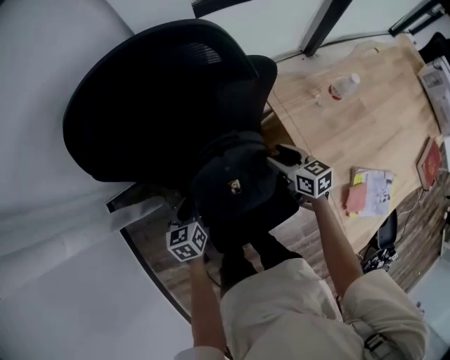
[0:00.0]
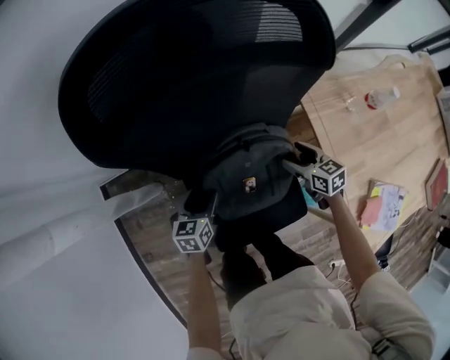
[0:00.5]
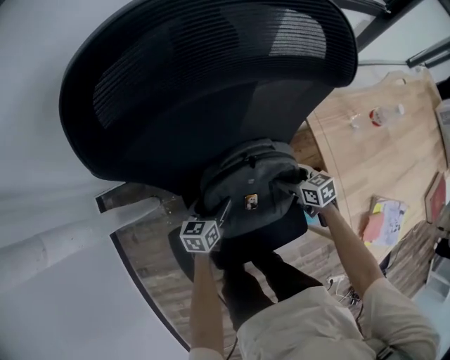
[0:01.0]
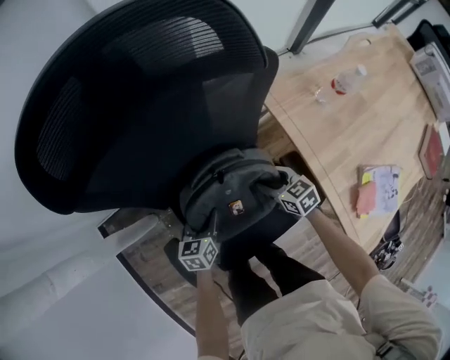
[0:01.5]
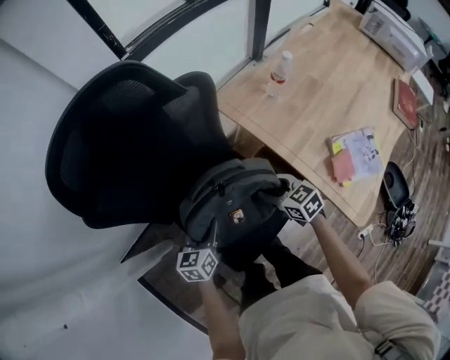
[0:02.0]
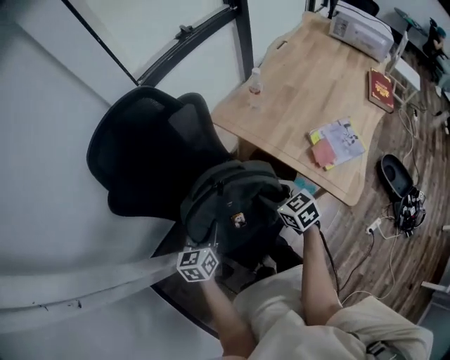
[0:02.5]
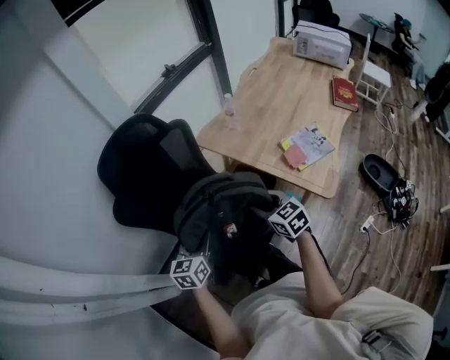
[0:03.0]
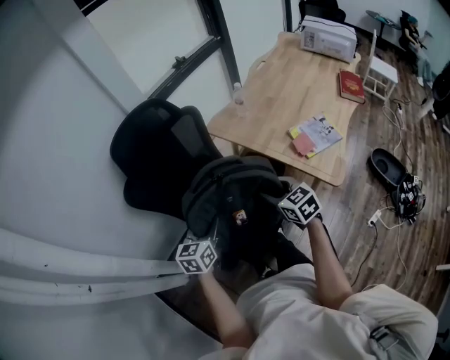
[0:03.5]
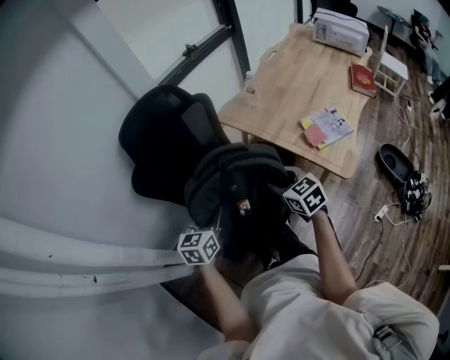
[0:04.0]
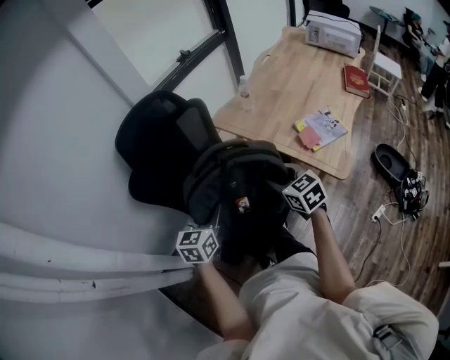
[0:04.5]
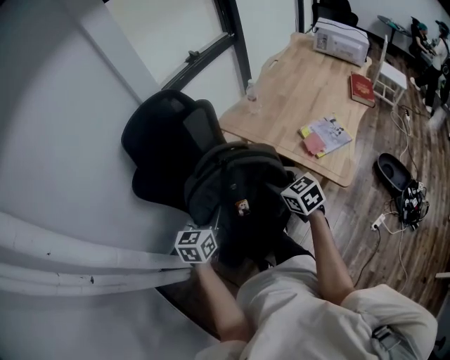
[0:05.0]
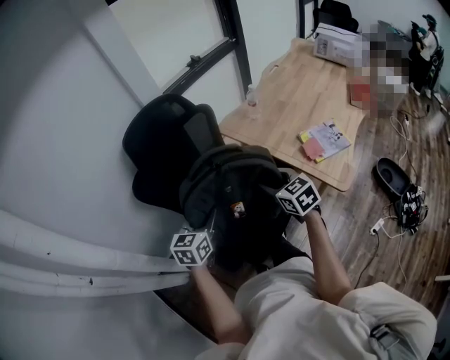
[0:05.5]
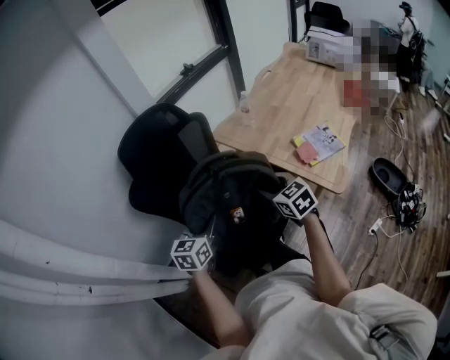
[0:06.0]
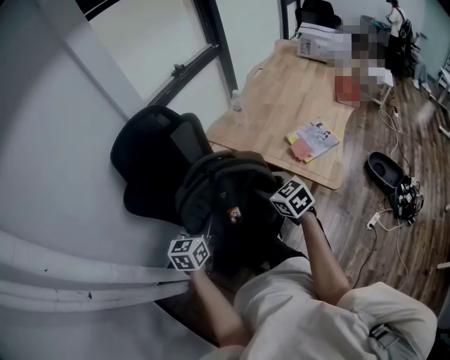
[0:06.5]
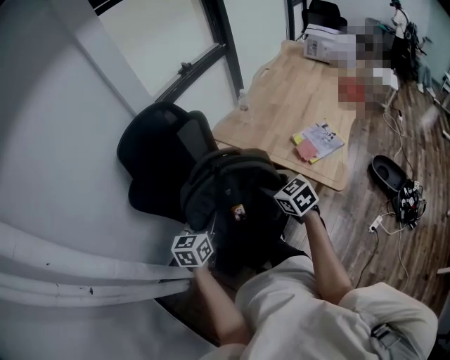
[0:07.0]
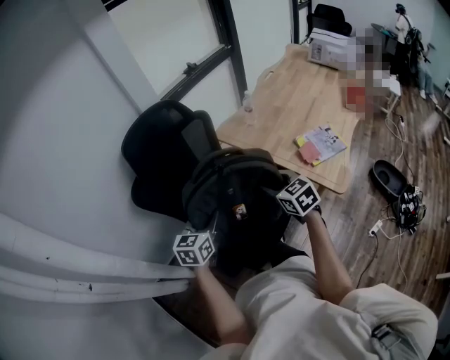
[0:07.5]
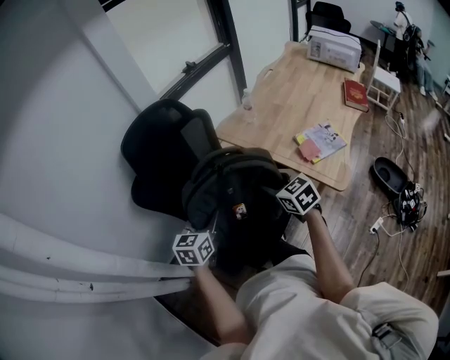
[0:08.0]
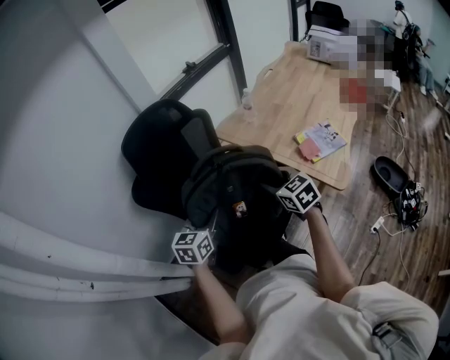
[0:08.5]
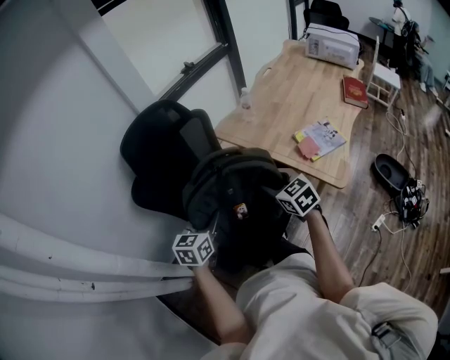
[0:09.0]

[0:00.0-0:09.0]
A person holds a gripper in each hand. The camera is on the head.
0:00.0 to 0:02.0: The right gripper travels backward by about 10 cm, and travels downward and back again, approximately 15 cm each way; the left gripper moves to the right and backward, some 10 cm, moves approximately 15 cm downward and comes back, swivels roughly 30 degrees, and opens up.
0:02.0 to 0:04.5: The two grippers go about 30 cm upward and backward. The left gripper turns by about 20 degrees. Meanwhile the right gripper turns by approximately 20 degrees.
0:04.5 to 0:07.0: The grippers make only small movements.
0:07.0 to 0:09.0: The two grippers keep their place.

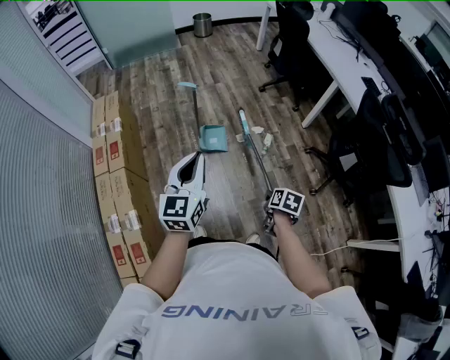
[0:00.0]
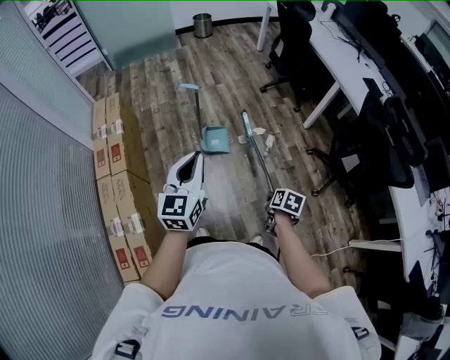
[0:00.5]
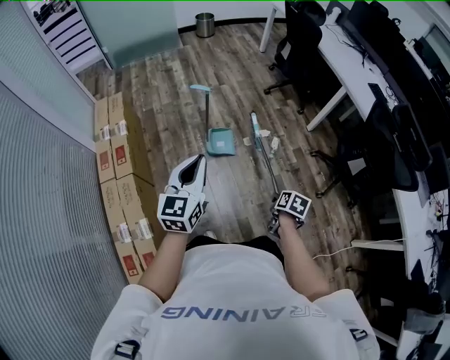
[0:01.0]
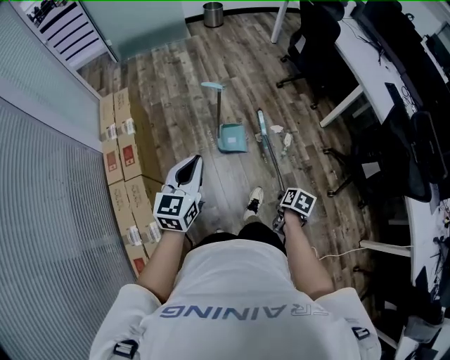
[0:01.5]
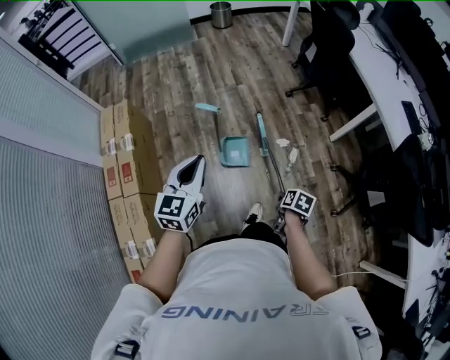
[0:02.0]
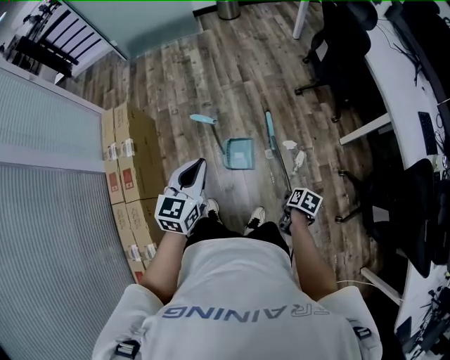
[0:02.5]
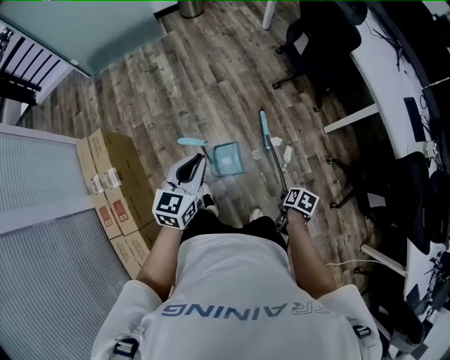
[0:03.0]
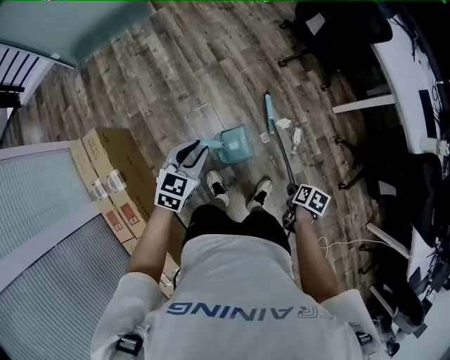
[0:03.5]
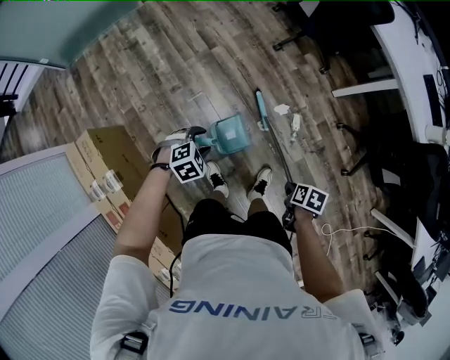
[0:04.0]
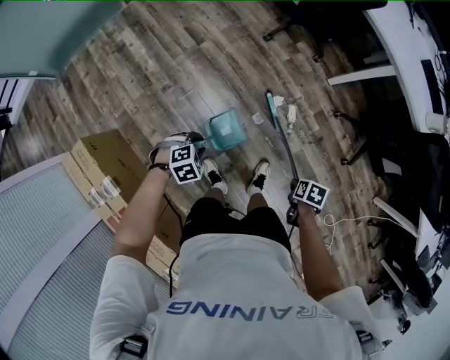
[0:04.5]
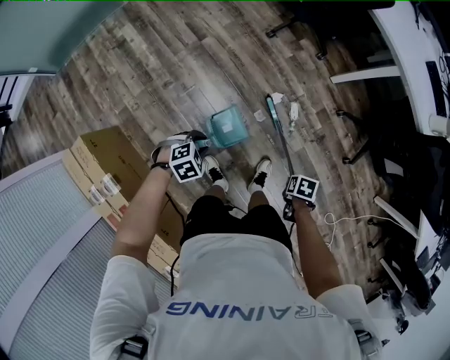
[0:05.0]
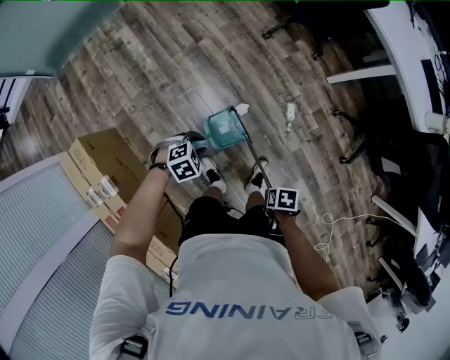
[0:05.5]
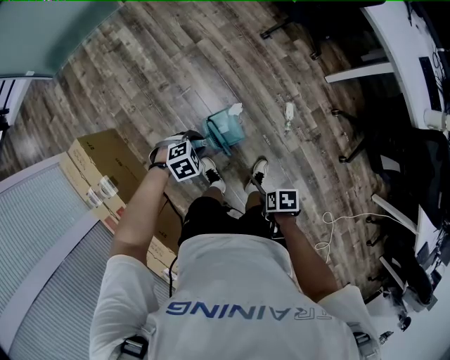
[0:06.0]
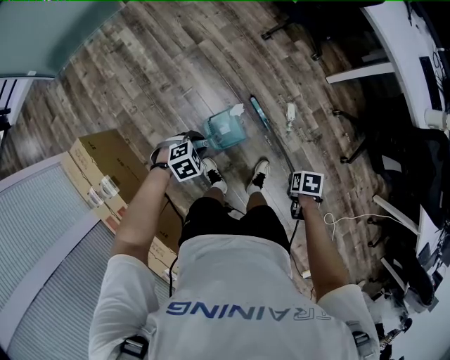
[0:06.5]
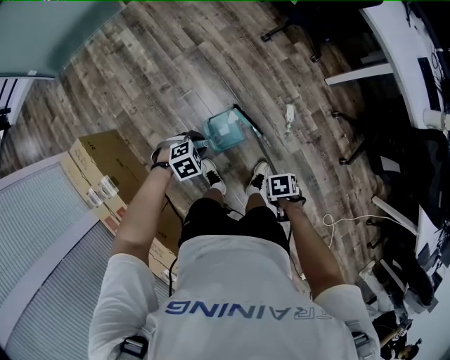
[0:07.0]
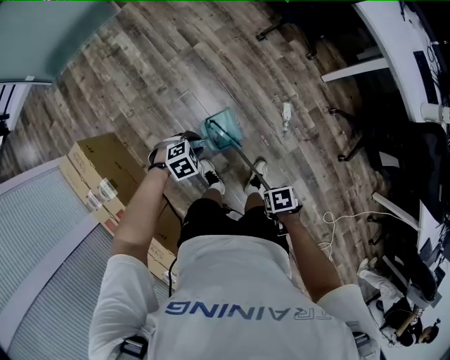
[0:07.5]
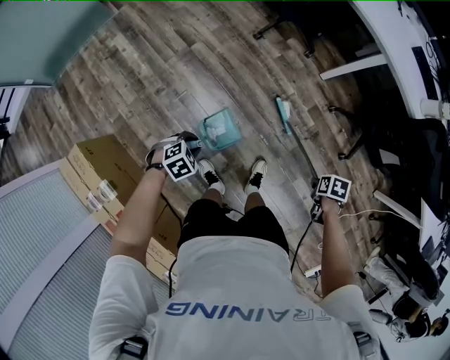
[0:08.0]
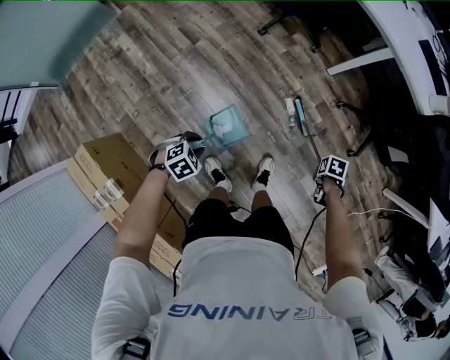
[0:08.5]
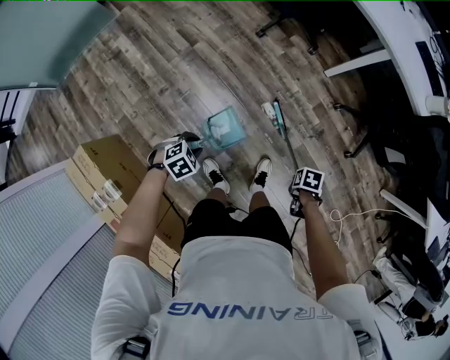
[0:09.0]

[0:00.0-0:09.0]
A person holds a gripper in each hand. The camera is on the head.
0:00.0 to 0:02.0: The left gripper changes place by about 25 cm.
0:02.0 to 0:04.5: The left gripper shifts roughly 35 cm downward, tilts its fingers roughly 60 degrees downward, and opens.

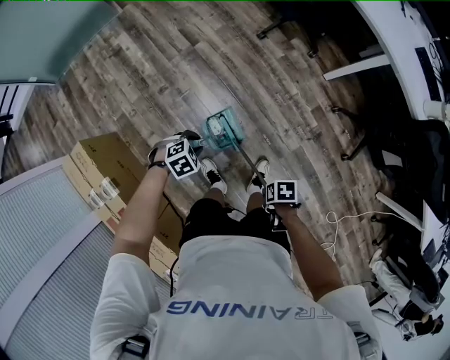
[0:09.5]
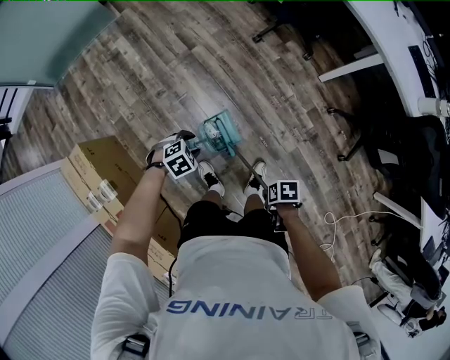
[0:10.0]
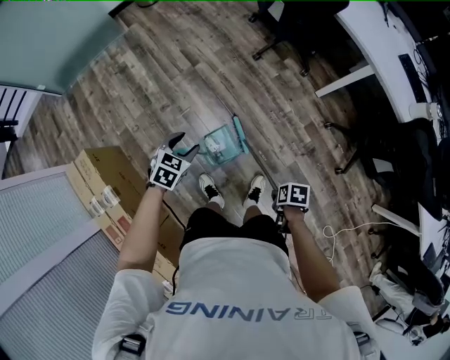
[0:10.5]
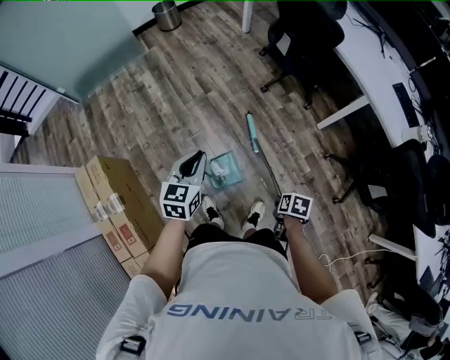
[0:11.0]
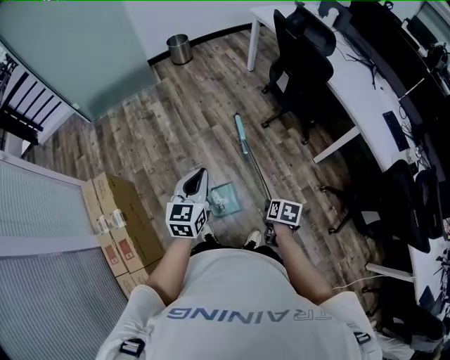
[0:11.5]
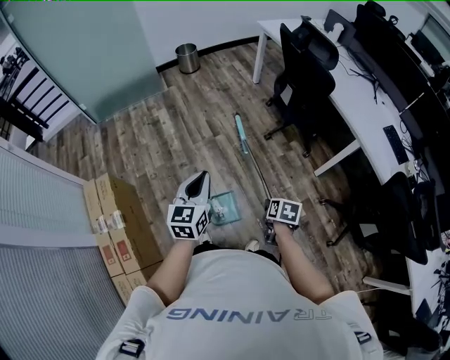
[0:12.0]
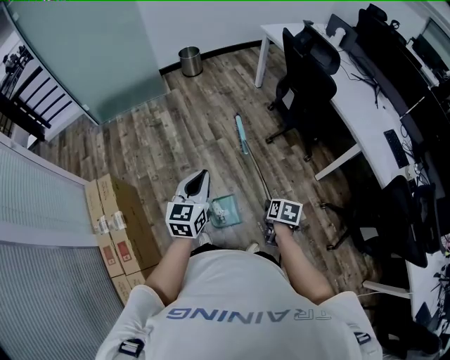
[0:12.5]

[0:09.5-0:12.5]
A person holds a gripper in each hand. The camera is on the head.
0:09.5 to 0:11.0: The left gripper is displaced upward by approximately 25 cm, angles its fingers upward, by some 40 degrees, and opens, then closes again.
0:11.0 to 0:12.5: The left gripper shifts approximately 10 cm upward.

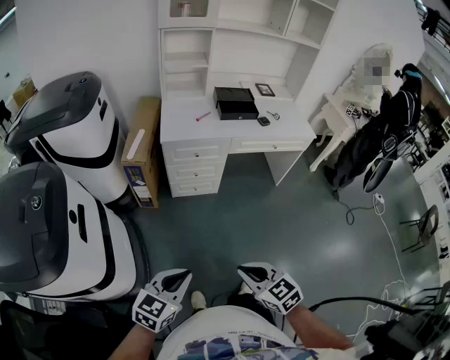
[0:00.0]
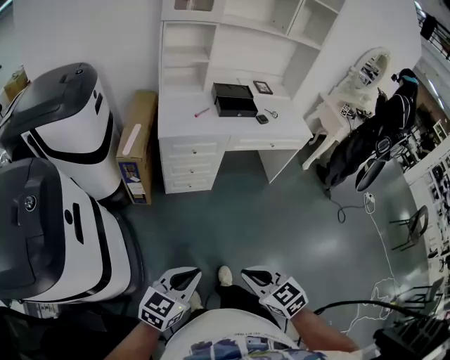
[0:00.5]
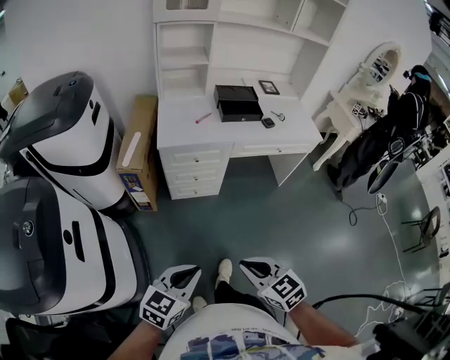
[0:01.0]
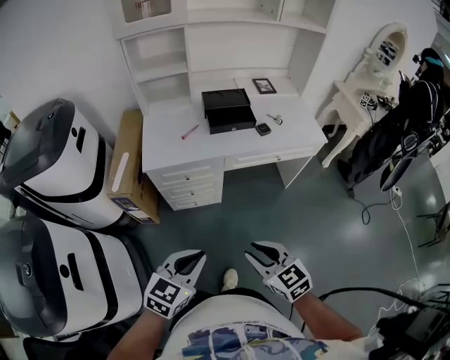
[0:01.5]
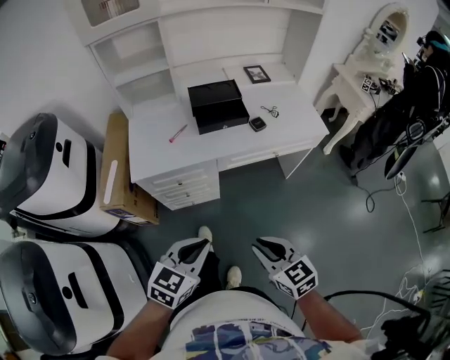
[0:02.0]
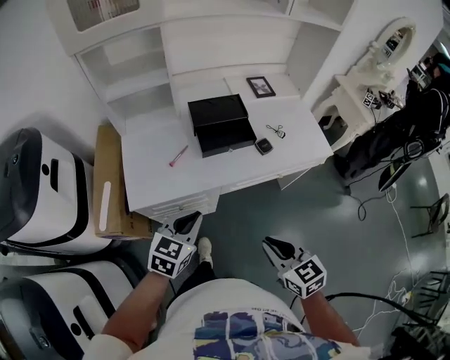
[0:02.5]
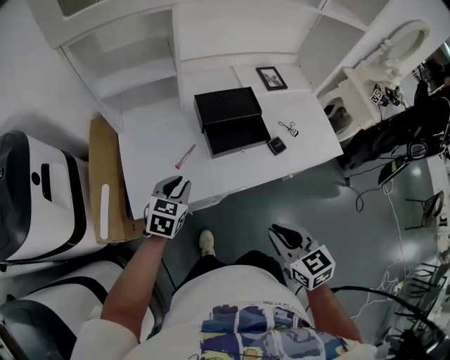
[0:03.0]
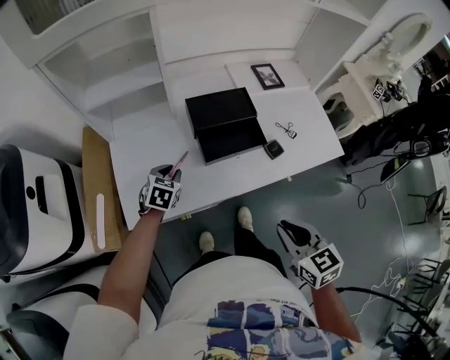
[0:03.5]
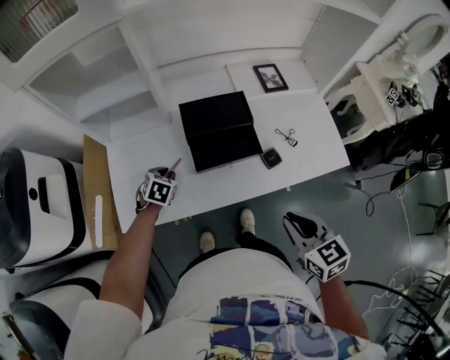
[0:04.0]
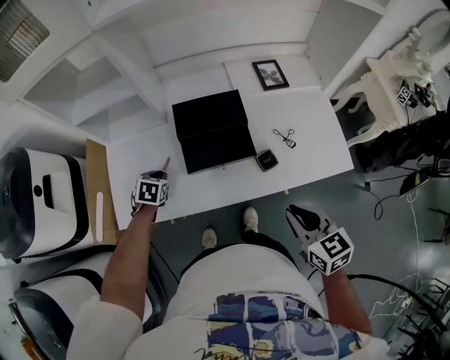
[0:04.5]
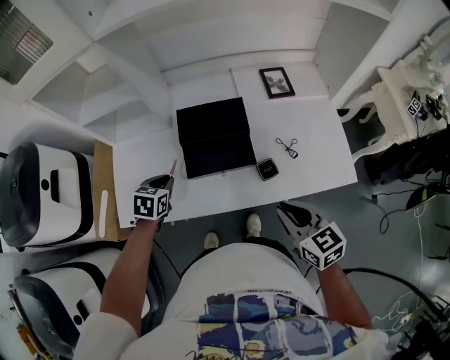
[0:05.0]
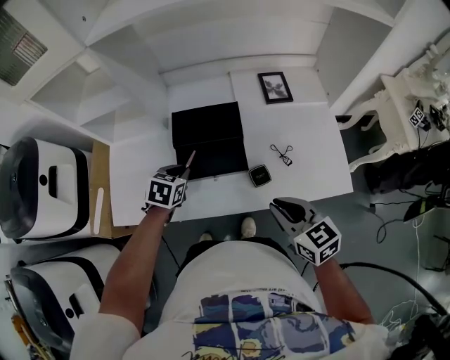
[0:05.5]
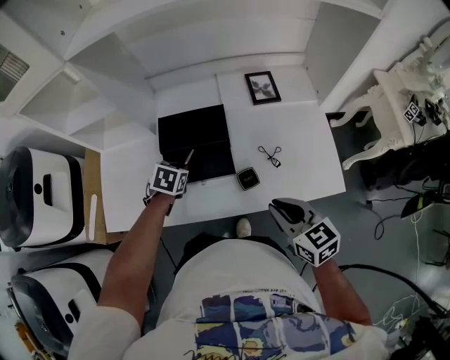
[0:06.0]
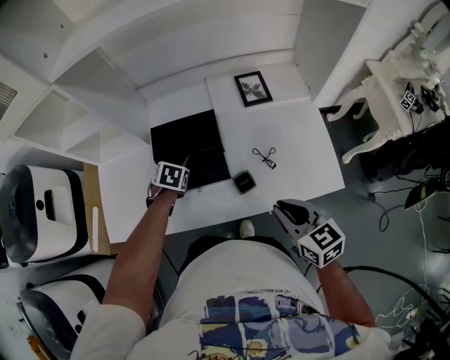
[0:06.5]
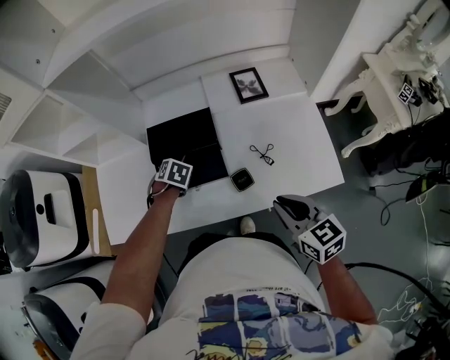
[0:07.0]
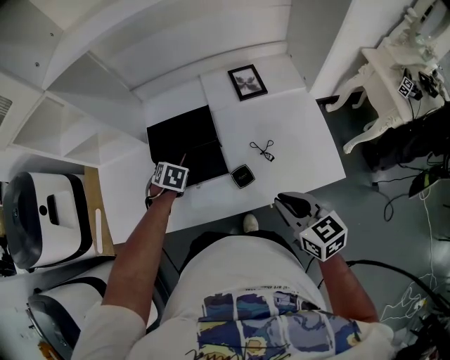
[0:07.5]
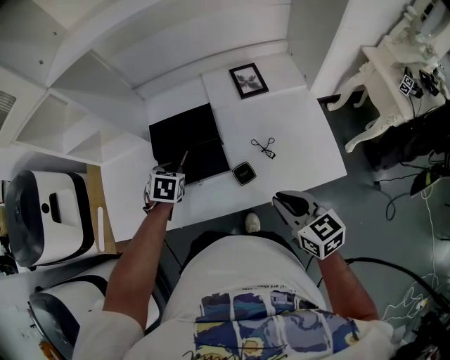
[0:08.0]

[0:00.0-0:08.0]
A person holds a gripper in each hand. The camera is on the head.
0:00.0 to 0:02.0: Both grippers move forward, about 30 cm.
0:02.0 to 0:04.0: The left gripper shifts roughly 50 cm forward and downward, and angles its fingers downward, by roughly 30 degrees. Meanwhile the right gripper heads forward, covering about 30 cm.
0:04.0 to 0:06.0: The right gripper shifts approximately 15 cm to the right and forward, while the left gripper is displaced to the right by about 15 cm.
